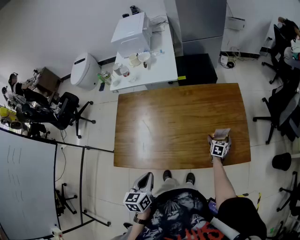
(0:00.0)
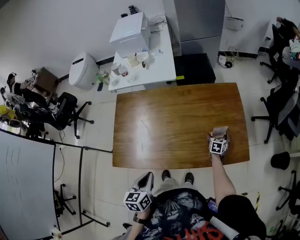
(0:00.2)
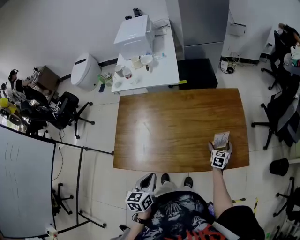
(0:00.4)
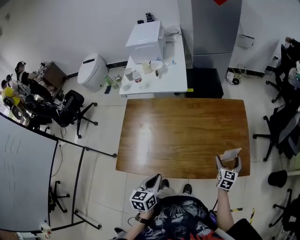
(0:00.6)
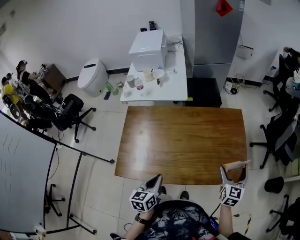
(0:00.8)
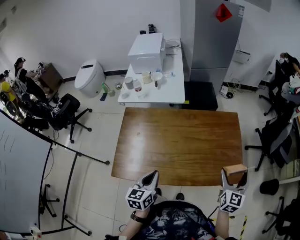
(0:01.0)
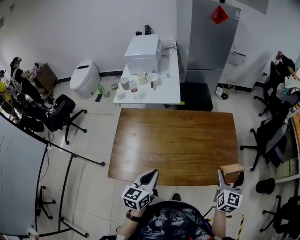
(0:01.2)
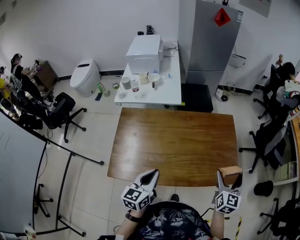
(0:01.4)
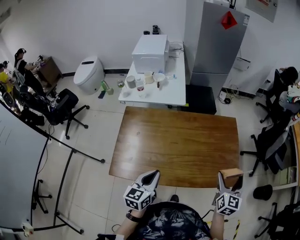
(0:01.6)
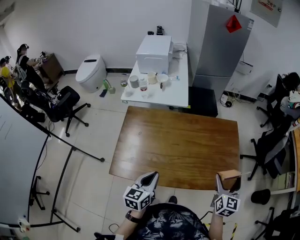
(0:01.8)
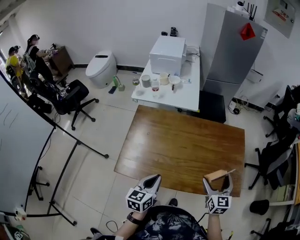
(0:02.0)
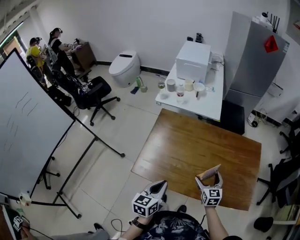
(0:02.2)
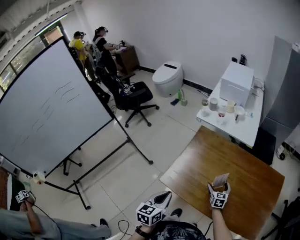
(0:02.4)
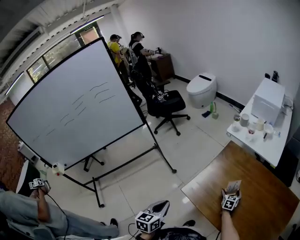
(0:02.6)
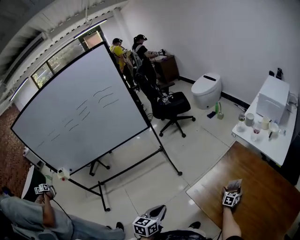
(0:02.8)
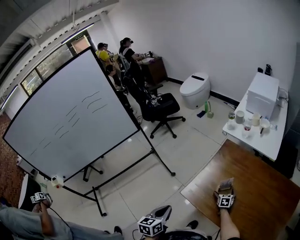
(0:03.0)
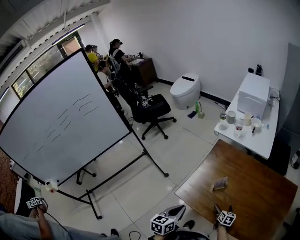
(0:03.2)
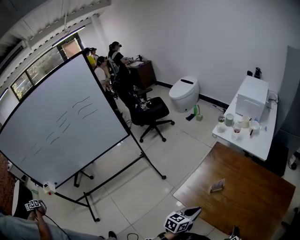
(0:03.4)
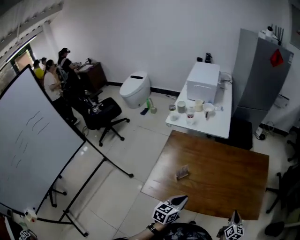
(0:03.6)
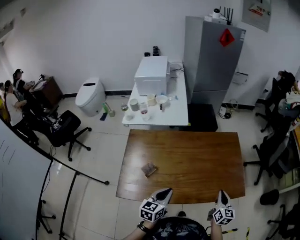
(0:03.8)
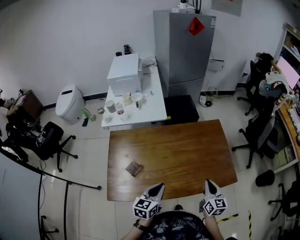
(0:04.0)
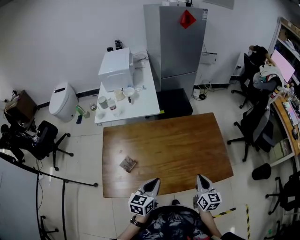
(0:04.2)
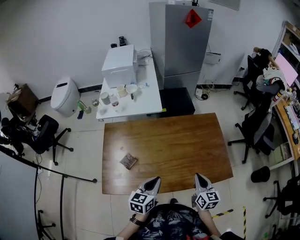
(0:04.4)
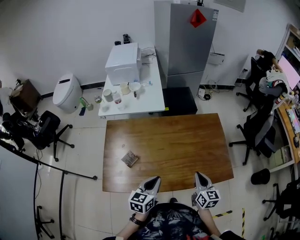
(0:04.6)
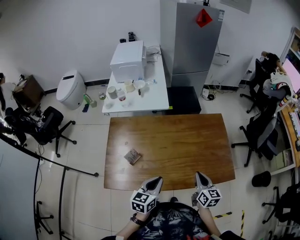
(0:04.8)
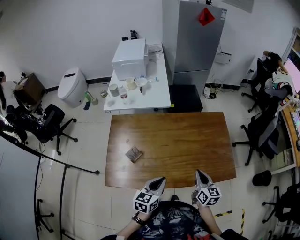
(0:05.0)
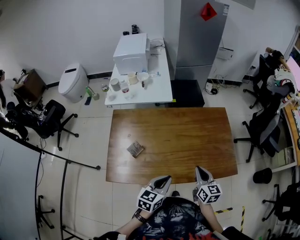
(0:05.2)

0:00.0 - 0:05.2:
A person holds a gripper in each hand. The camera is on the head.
0:00.0 - 0:01.8: The left gripper travels upward and forward by about 10 cm. Meanwhile the right gripper is displaced upward by some 35 cm, and tips its fingers upward by approximately 30 degrees.
0:01.8 - 0:03.4: The right gripper shifts about 30 cm downward, changes its angle by about 40 degrees, and closes its fingers.
0:03.4 - 0:05.2: The right gripper shifts roughly 20 cm upward, and changes its angle by approximately 20 degrees. Meanwhile the left gripper changes place by some 20 cm, and rotates some 30 degrees.

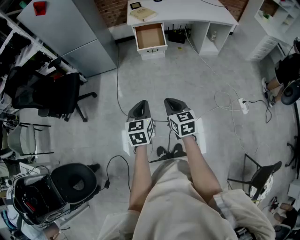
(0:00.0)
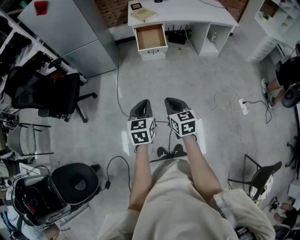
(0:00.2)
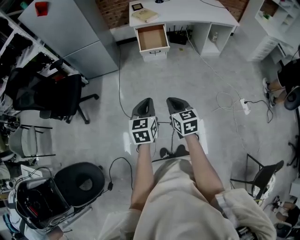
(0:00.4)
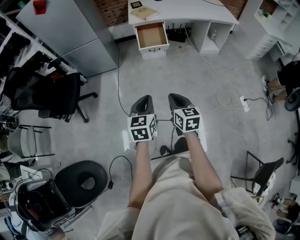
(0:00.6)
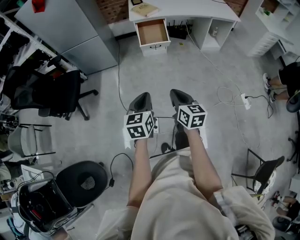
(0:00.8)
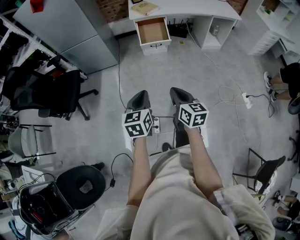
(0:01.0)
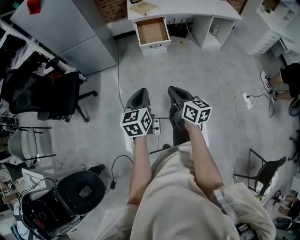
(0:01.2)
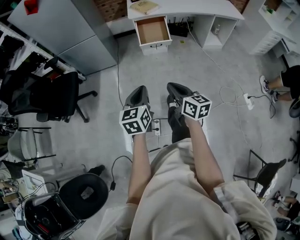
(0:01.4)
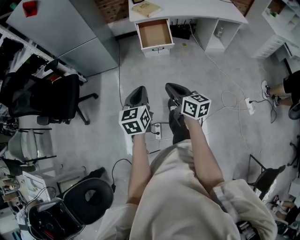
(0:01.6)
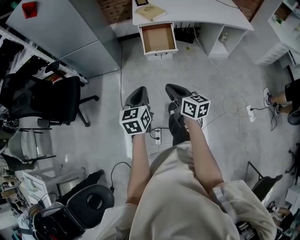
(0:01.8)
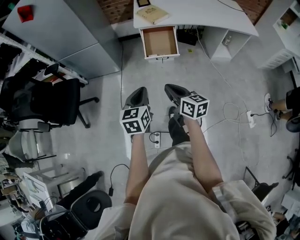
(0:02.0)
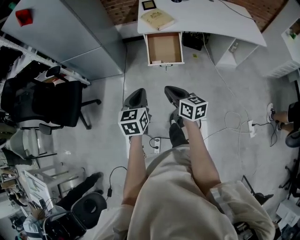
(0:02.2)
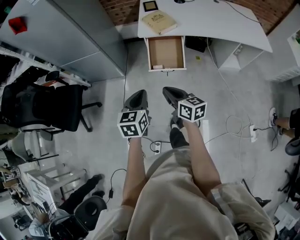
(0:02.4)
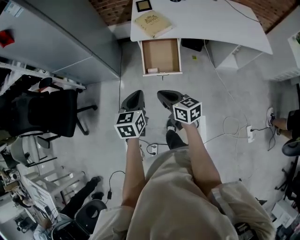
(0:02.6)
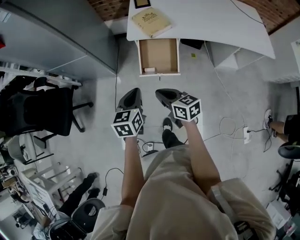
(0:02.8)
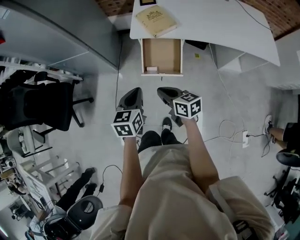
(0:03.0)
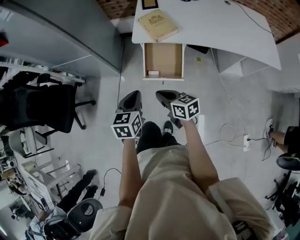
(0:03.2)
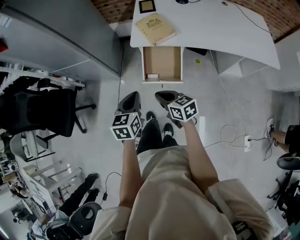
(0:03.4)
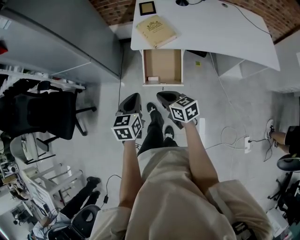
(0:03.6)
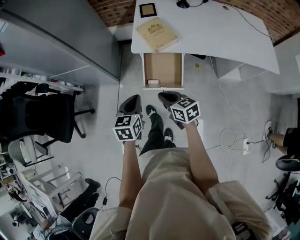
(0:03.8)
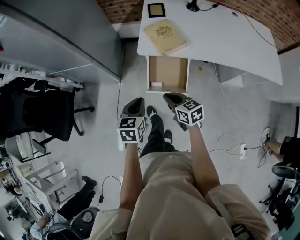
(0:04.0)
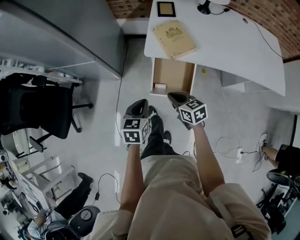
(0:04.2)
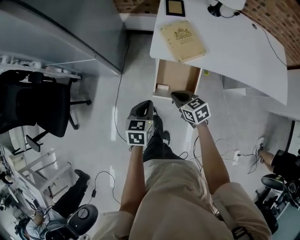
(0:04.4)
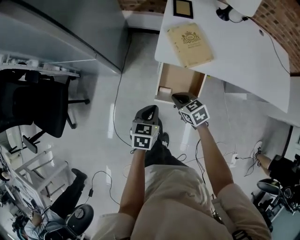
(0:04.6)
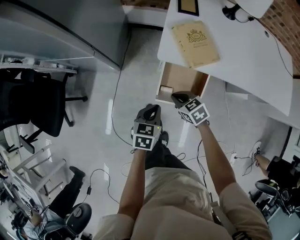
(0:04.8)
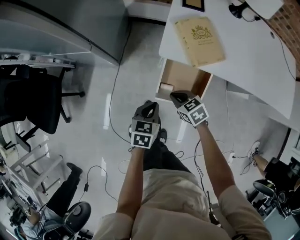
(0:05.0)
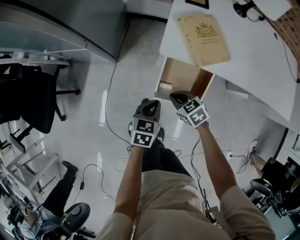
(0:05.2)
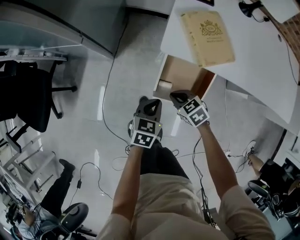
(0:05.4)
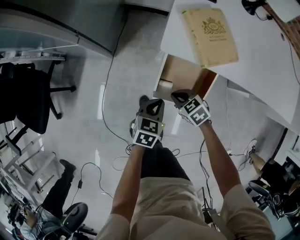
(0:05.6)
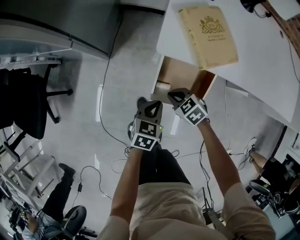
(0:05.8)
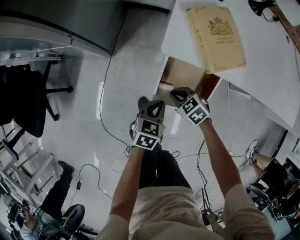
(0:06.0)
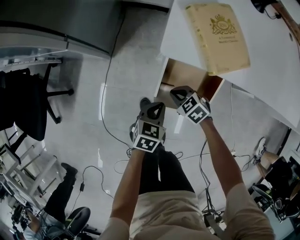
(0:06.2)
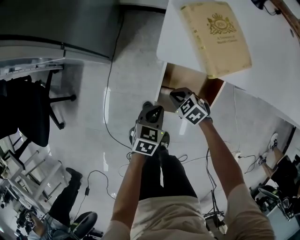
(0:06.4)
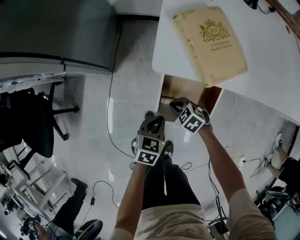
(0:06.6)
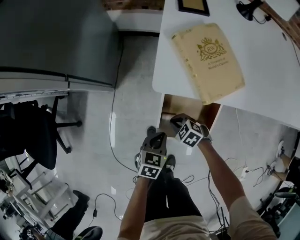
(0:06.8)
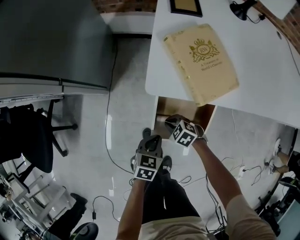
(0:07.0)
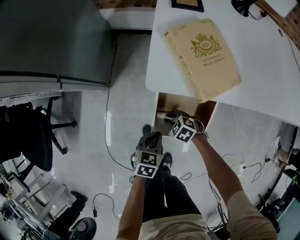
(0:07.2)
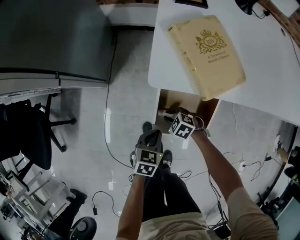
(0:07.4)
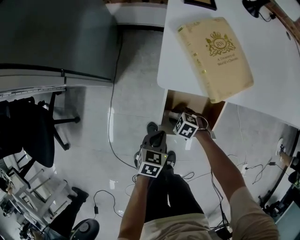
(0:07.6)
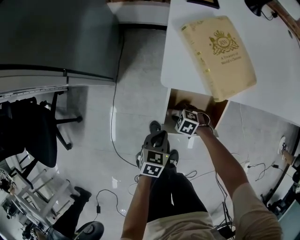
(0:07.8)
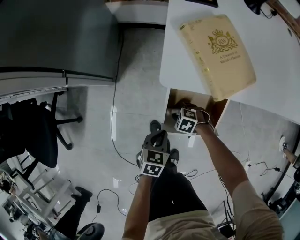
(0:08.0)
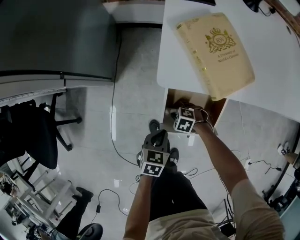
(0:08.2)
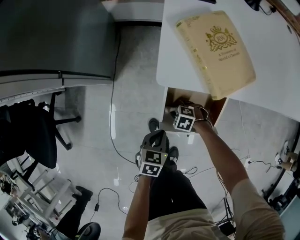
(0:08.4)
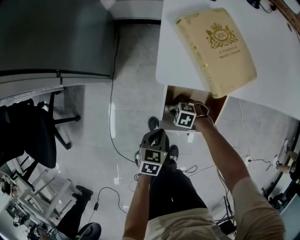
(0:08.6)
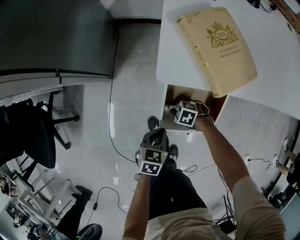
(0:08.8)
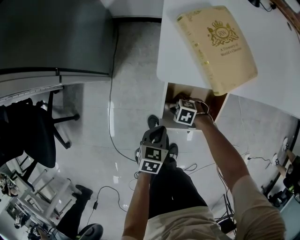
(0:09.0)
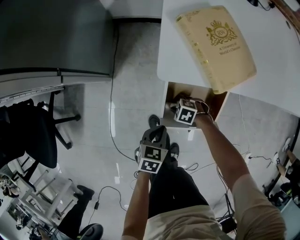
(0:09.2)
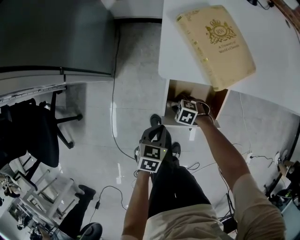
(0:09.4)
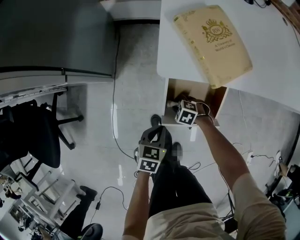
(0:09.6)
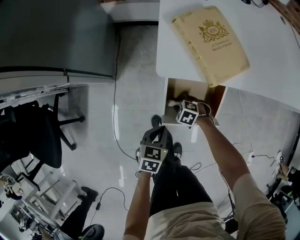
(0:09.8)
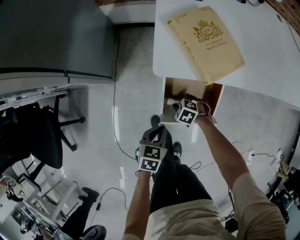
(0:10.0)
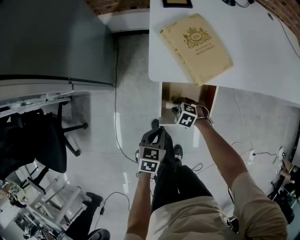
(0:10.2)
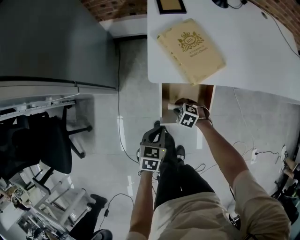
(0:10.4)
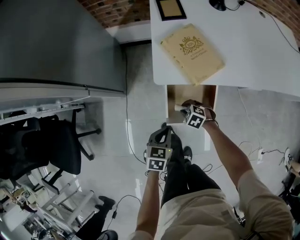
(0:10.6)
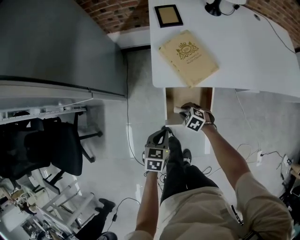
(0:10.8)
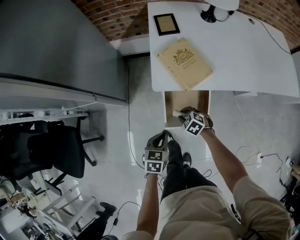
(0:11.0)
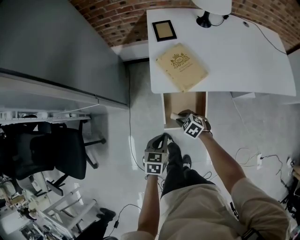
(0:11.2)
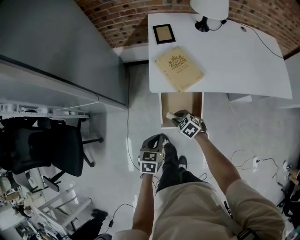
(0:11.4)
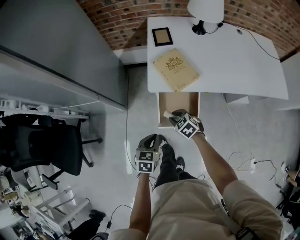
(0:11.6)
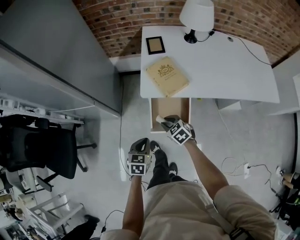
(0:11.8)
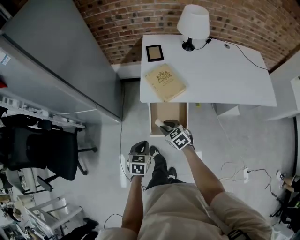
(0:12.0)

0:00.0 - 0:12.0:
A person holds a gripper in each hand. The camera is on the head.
0:00.0 - 0:01.6: The grippers both shift forward by roughly 15 cm. The right gripper changes its angle by some 30 degrees.
0:01.6 - 0:03.0: The two grippers travel together, forward, approximately 40 cm. The right gripper swivels some 30 degrees.
0:03.0 - 0:04.4: The grippers both shift forward and downward by roughly 20 cm. The right gripper turns by some 30 degrees.
0:04.4 - 0:06.0: Both grippers travel together downward, roughly 20 cm. The right gripper swivels approximately 30 degrees.
0:06.0 - 0:07.6: The right gripper travels downward by about 15 cm, and opens, while the left gripper heads downward, covering some 5 cm.
0:07.6 - 0:09.0: The grippers stay close to where they were, moving slightly.
0:09.0 - 0:10.4: Both grippers travel together upward, approximately 10 cm.
0:10.4 - 0:12.0: The right gripper goes approximately 30 cm upward, and rotates approximately 40 degrees. Meanwhile the left gripper is displaced upward by roughly 15 cm.

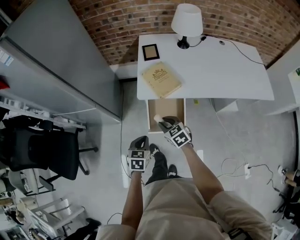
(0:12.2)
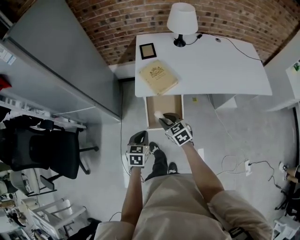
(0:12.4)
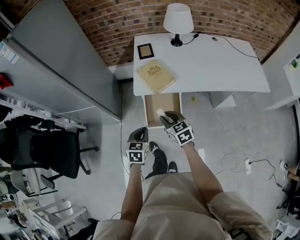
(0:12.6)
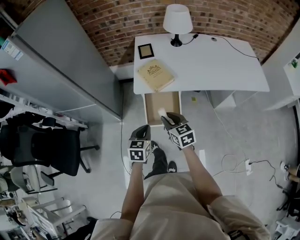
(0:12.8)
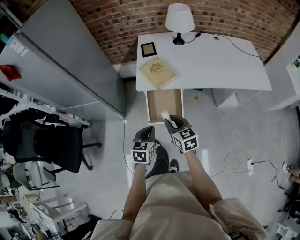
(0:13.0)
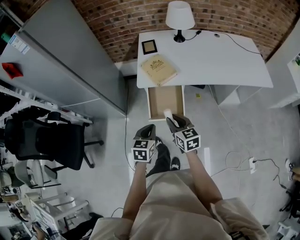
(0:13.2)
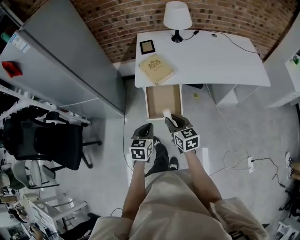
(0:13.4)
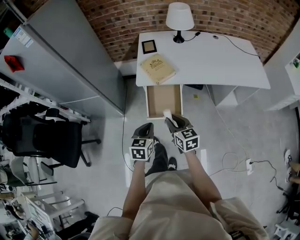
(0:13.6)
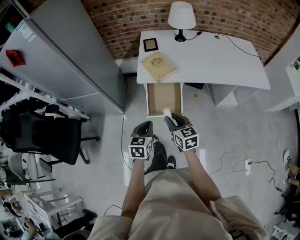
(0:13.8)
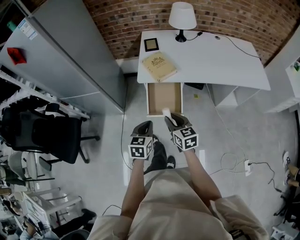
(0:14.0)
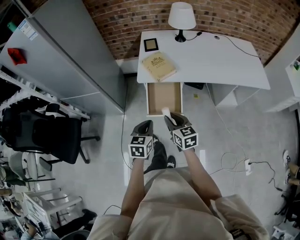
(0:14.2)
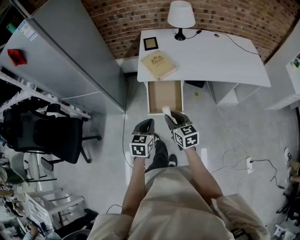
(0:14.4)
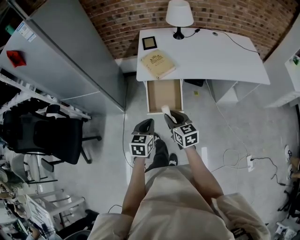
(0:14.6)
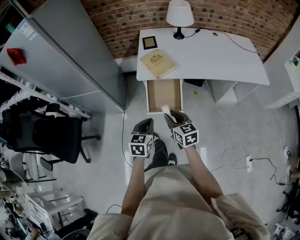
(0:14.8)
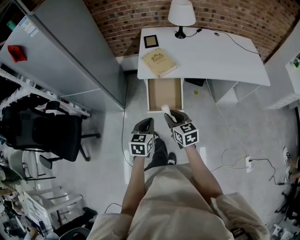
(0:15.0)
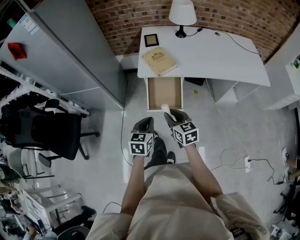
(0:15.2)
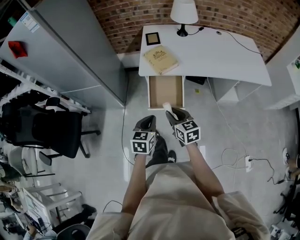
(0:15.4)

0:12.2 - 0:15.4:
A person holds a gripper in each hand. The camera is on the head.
0:12.2 - 0:13.8: The right gripper goes some 20 cm backward, upward and to the right, and rotates approximately 30 degrees, while the left gripper goes approximately 10 cm backward and upward.
0:13.8 - 0:15.4: The grippers stay close to where they were, moving slightly.

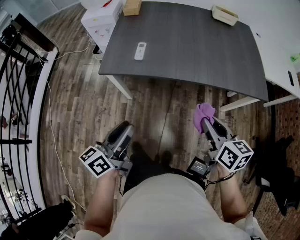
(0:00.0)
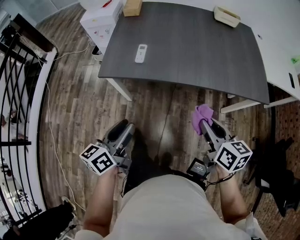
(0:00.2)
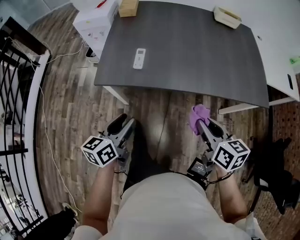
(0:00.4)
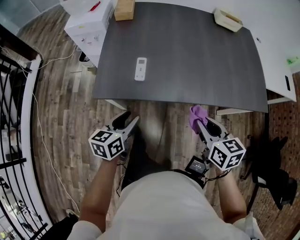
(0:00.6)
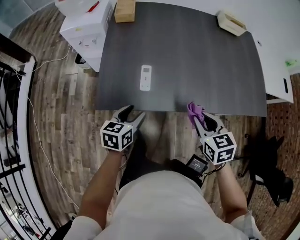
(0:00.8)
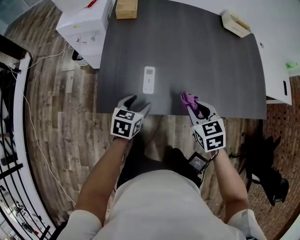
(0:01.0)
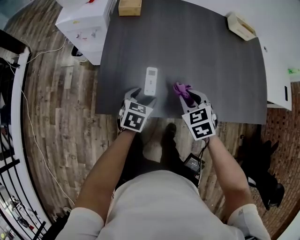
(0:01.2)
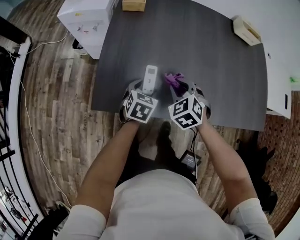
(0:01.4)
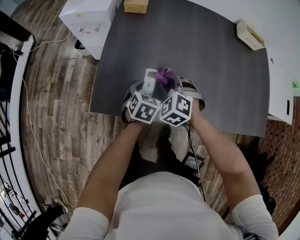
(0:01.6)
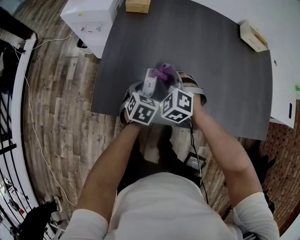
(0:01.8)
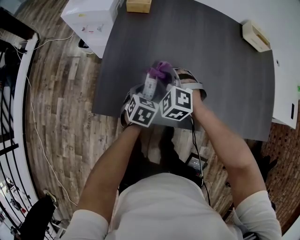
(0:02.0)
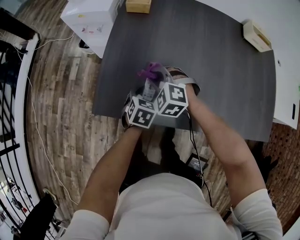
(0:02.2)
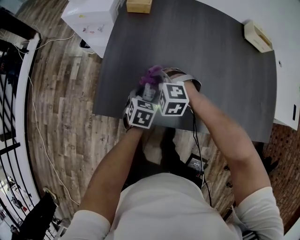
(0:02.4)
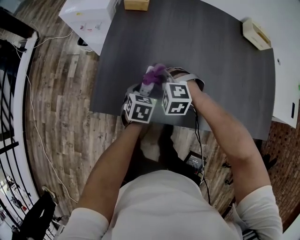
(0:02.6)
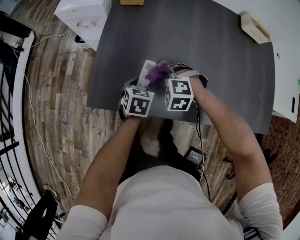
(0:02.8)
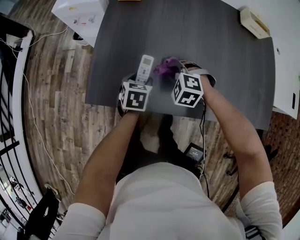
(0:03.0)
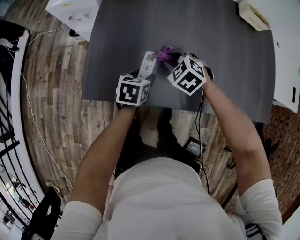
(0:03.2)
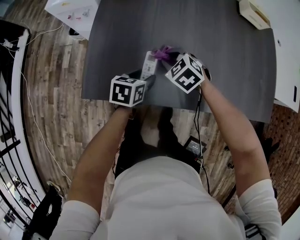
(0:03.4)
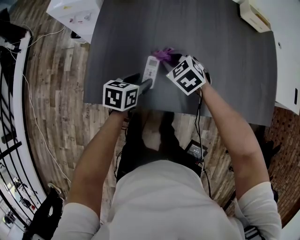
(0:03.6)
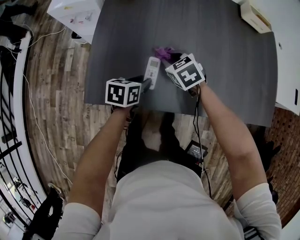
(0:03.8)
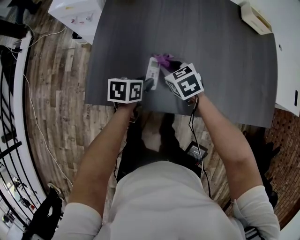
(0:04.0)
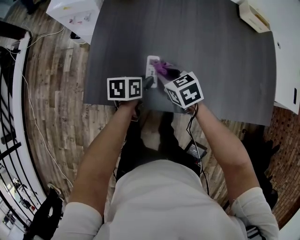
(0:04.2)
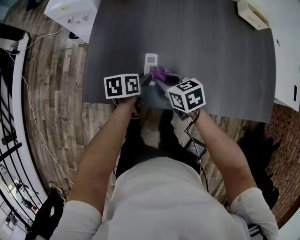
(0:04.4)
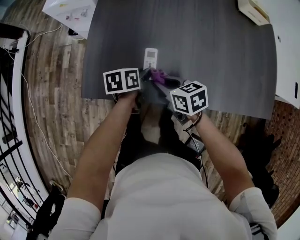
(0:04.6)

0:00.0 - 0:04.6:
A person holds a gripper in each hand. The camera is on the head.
0:00.0 - 0:01.6: The pair of grippers is taken forward and to the left, approximately 40 cm. The grippers both shift downward by roughly 20 cm. The left gripper tips its fingers downward by approximately 40 degrees, and opens its fingers; the right gripper rotates around the line of its fingers by about 80 degrees, counterclockwise from behind.
0:01.6 - 0:03.0: The right gripper changes place by approximately 5 cm, and turns by some 20 degrees.
0:03.0 - 0:04.6: The right gripper heads backward, covering about 10 cm, and rolls clockwise, seen from behind, by some 70 degrees, while the left gripper changes its angle by about 30 degrees.
